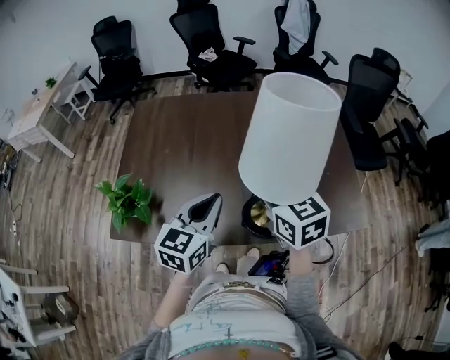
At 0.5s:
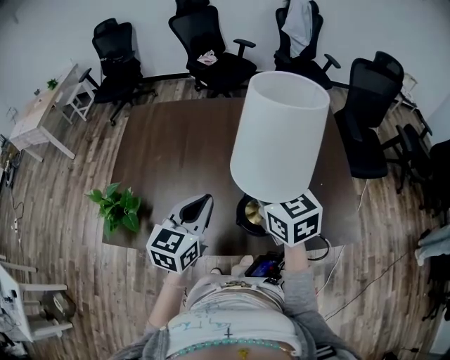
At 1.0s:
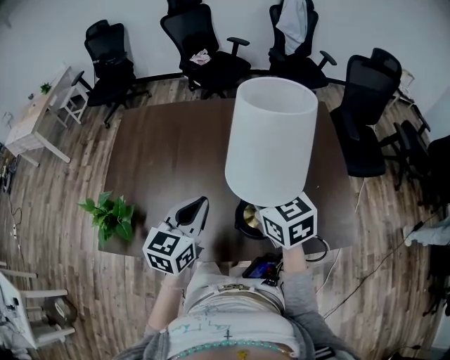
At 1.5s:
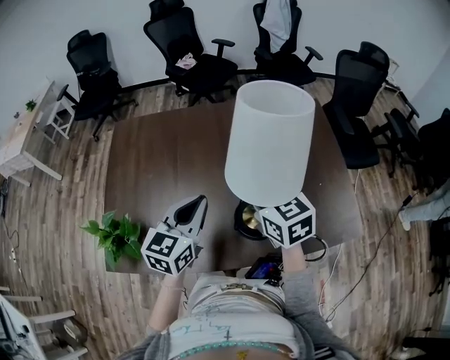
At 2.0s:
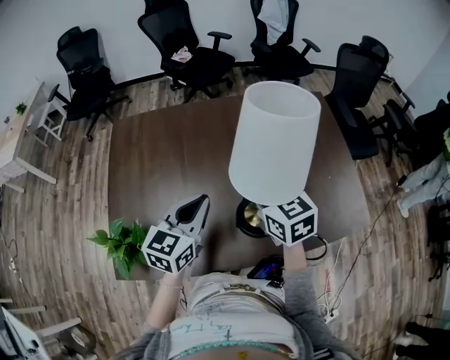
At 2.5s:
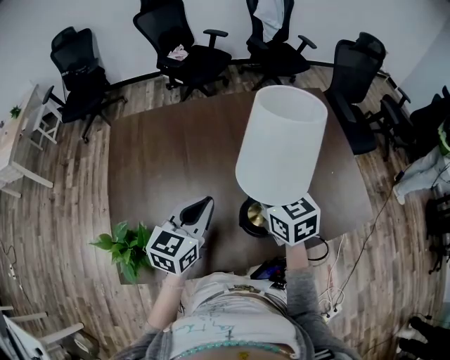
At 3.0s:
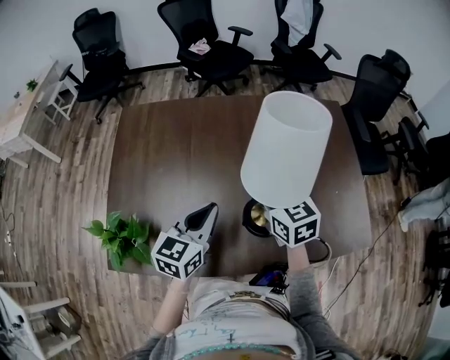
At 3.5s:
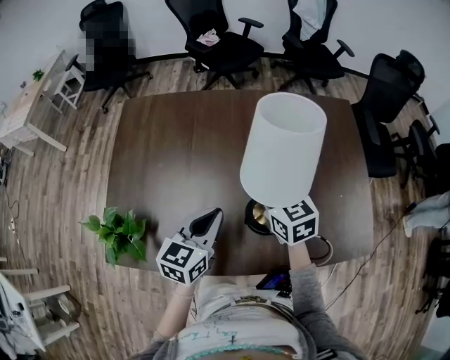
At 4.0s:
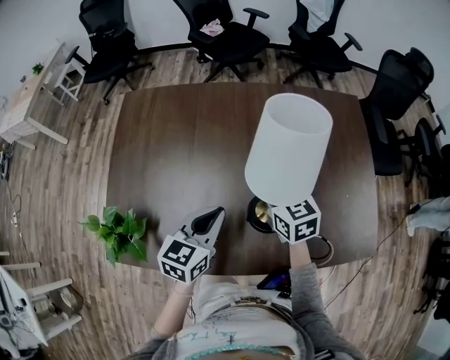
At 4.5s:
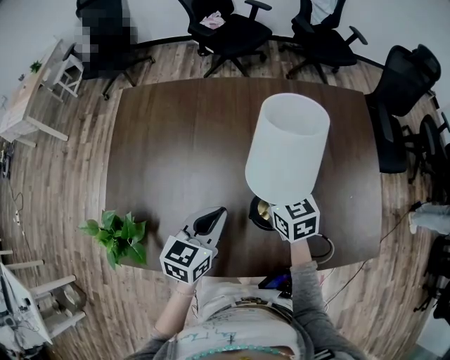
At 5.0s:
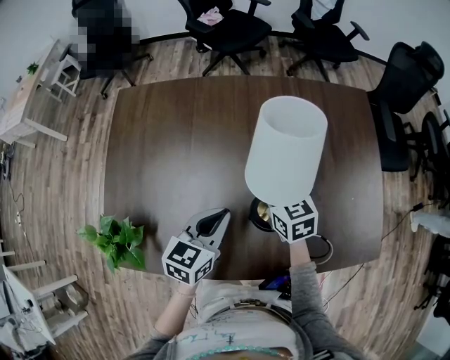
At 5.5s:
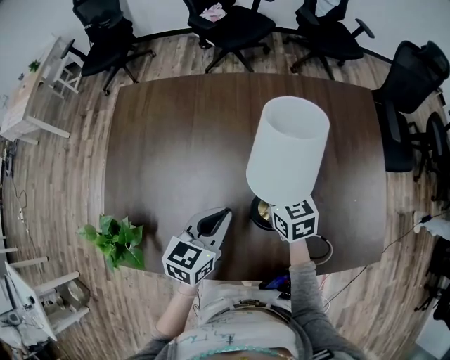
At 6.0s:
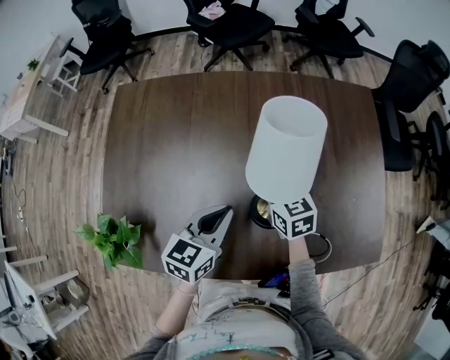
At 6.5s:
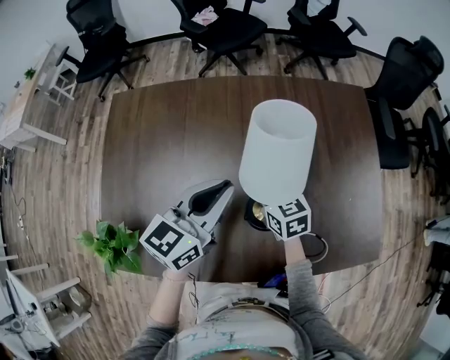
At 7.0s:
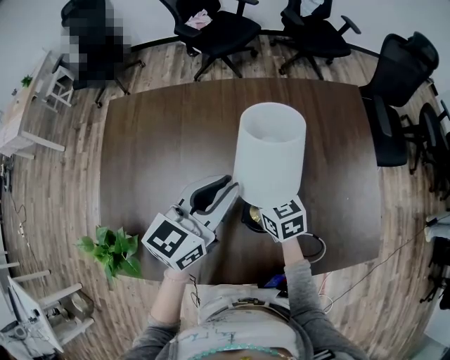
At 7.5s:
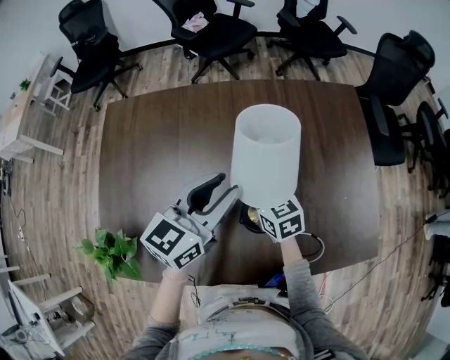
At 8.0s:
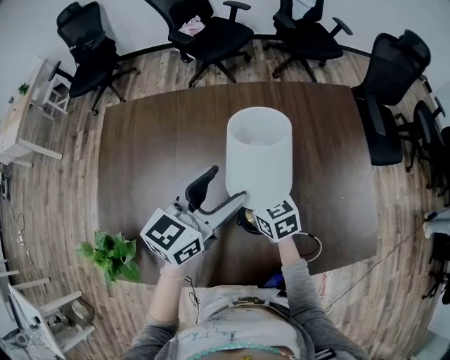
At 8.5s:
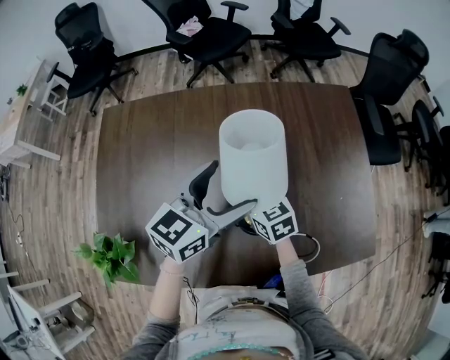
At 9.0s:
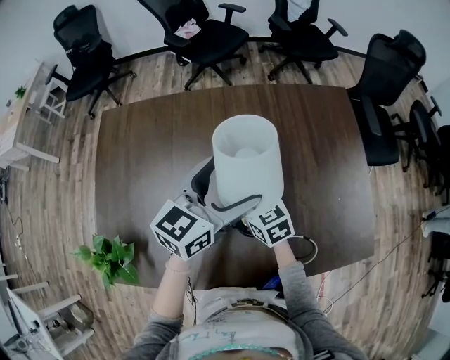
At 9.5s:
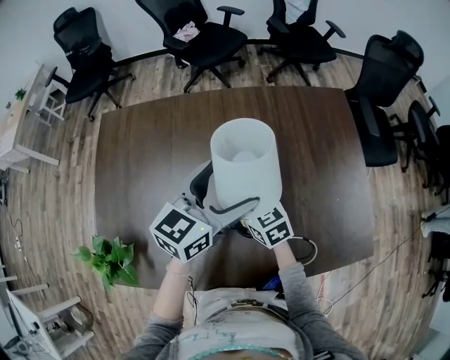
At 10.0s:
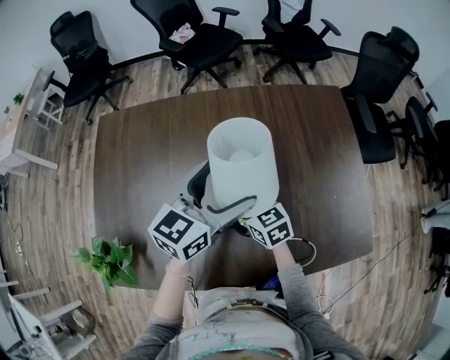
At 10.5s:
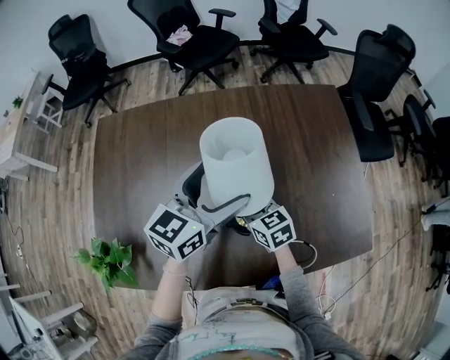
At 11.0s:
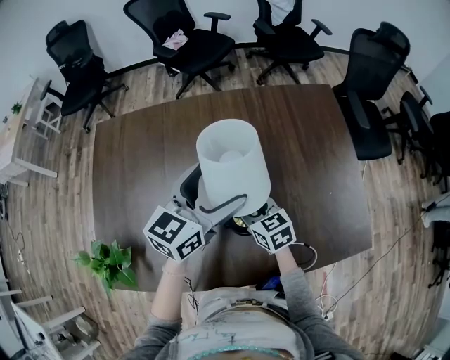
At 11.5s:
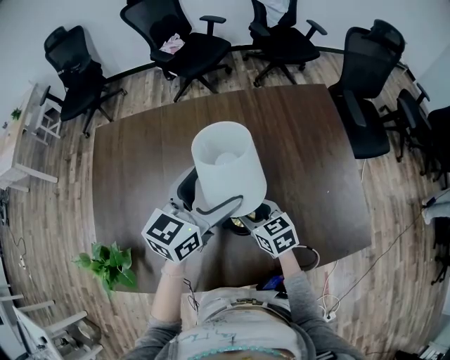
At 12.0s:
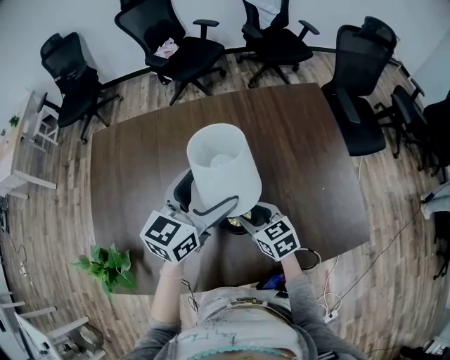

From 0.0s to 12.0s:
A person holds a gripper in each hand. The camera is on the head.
From 0.0s to 2.0s: The left gripper moves forward and to the left, approximately 15 cm. The right gripper goes some 10 cm forward and downward.
From 2.0s to 4.0s: The left gripper moves downward, about 5 cm, while the right gripper moves downward and forward, roughly 10 cm.
From 4.0s to 6.0s: The right gripper is displaced downward by about 5 cm. Meanwhile the left gripper ends up some 5 cm from where it was.
From 6.0s to 8.0s: The left gripper is displaced upward and forward by roughly 15 cm, and opens.
From 8.0s to 10.0s: The left gripper opens up.
From 10.0s to 12.0s: The right gripper travels to the right and backward by about 10 cm, and opens its fingers.

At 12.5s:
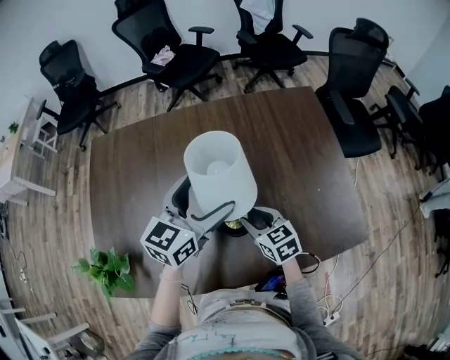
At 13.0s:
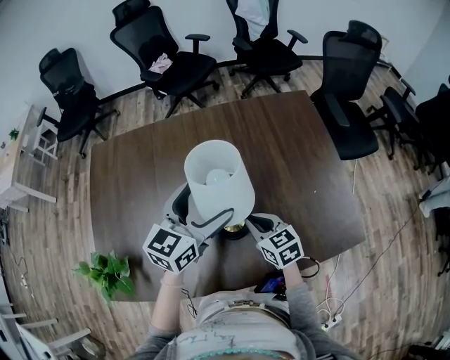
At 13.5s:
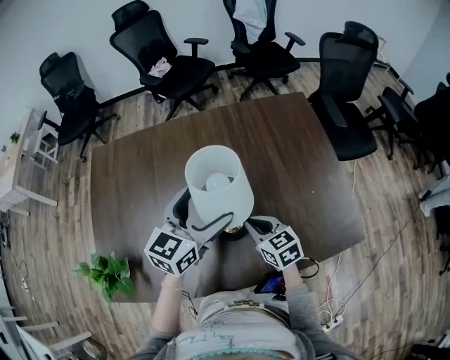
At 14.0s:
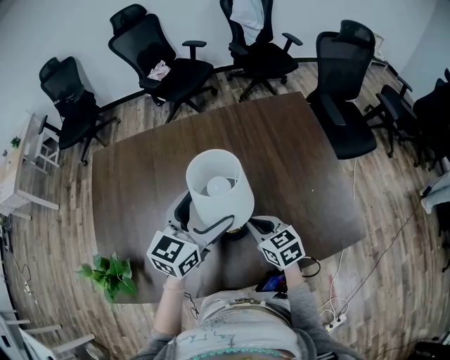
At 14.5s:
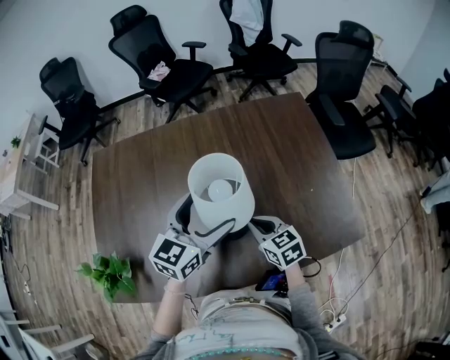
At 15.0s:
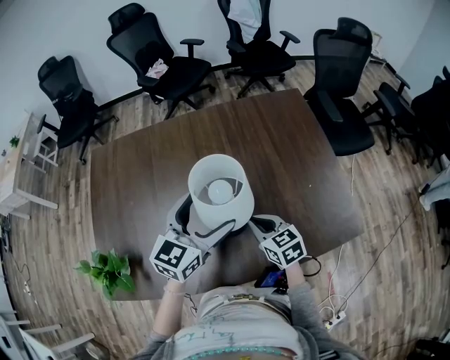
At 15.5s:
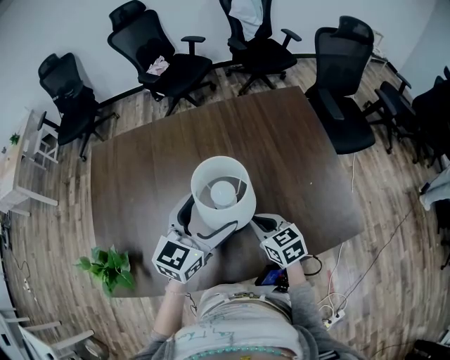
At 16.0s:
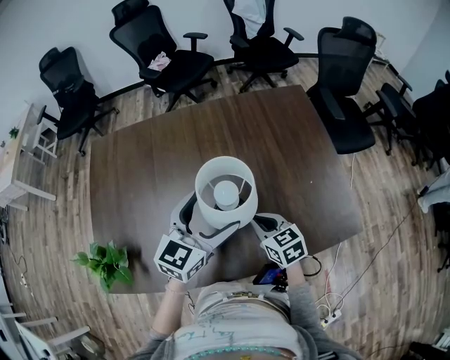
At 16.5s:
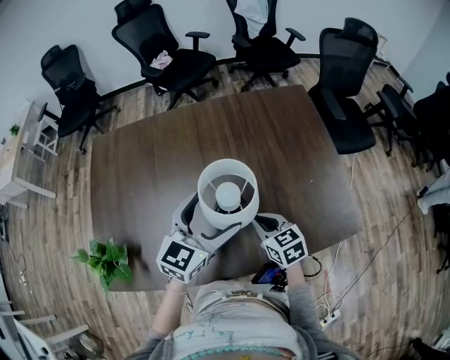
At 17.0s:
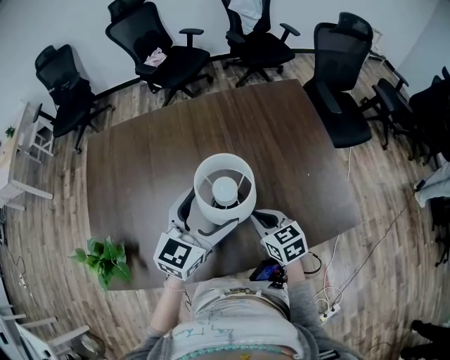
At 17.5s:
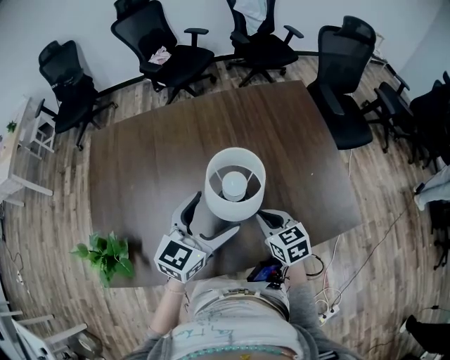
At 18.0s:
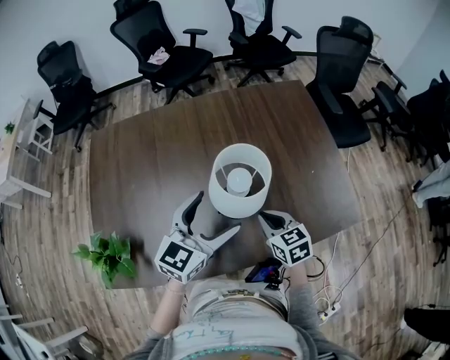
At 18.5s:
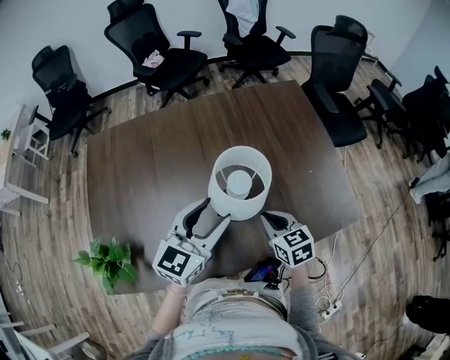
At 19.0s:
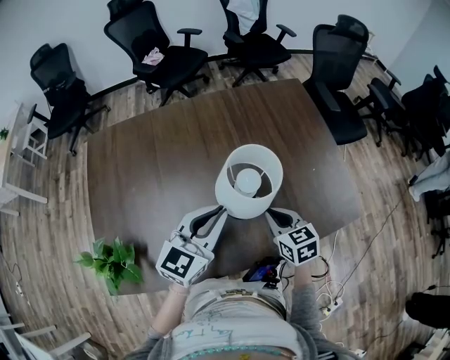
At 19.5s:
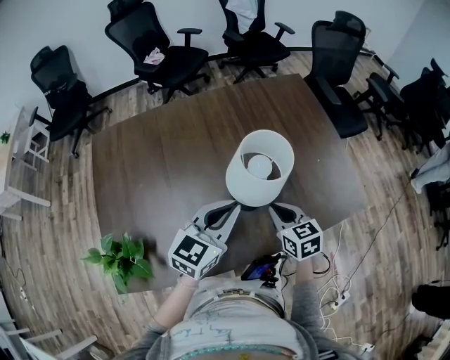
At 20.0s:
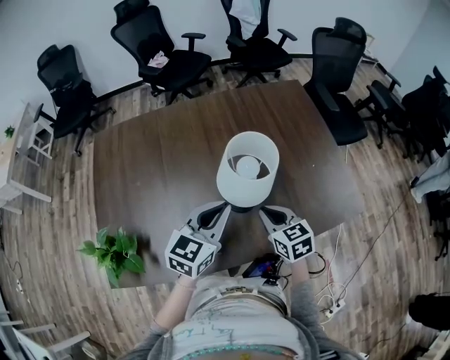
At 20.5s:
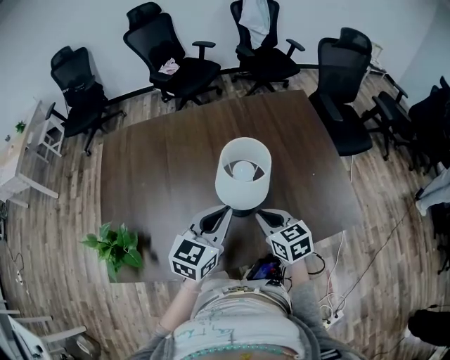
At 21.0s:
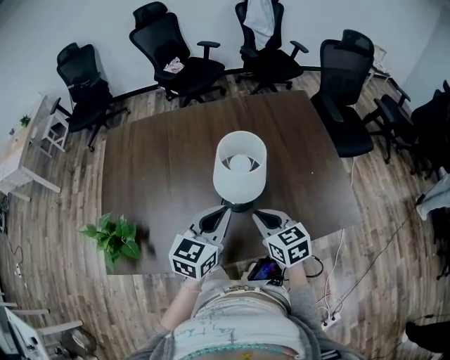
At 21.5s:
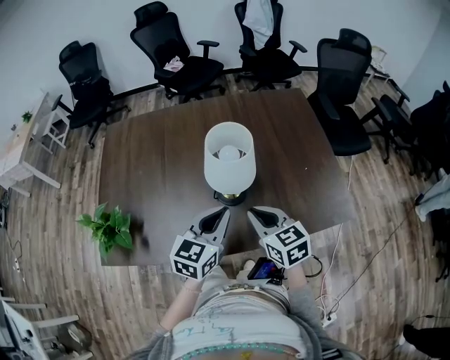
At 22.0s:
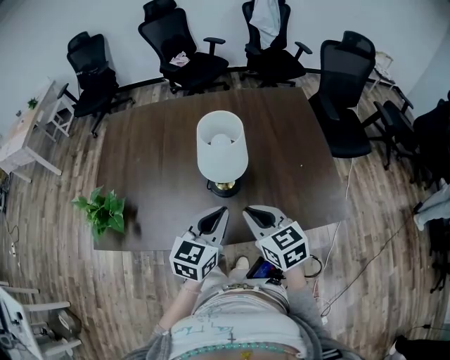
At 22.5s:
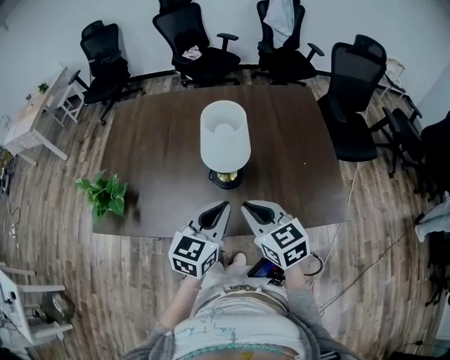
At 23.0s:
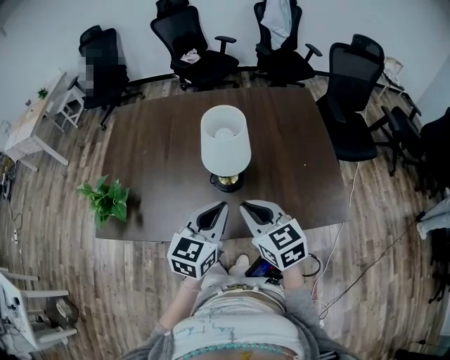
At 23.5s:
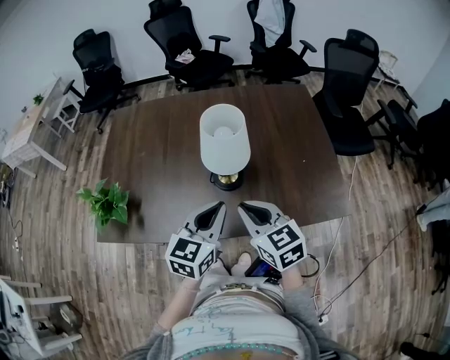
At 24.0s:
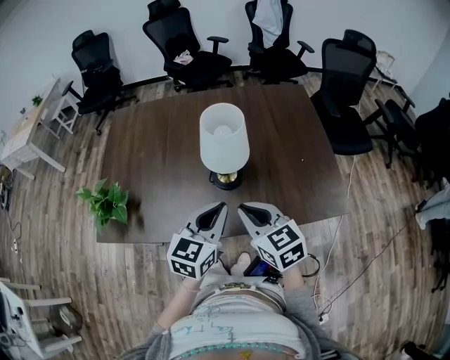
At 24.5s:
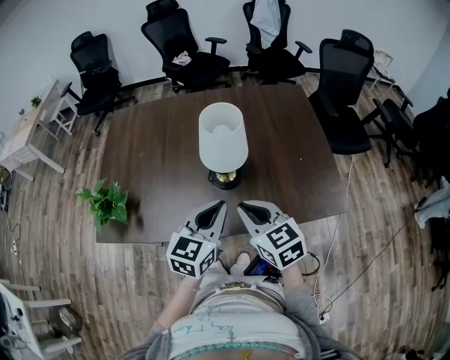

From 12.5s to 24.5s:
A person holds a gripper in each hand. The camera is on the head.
From 12.5s to 14.5s: The right gripper closes up, while the left gripper moves roughly 5 cm.
From 14.5s to 16.5s: There are only small adjustments of the grippers.
From 16.5s to 18.5s: The left gripper closes its fingers.
From 18.5s to 20.5s: The left gripper closes up.
From 20.5s to 22.5s: The right gripper is displaced backward and upward by roughly 15 cm. Meanwhile the left gripper moves backward and to the right, roughly 15 cm.
From 22.5s to 24.5s: There are only small adjustments of the grippers.
